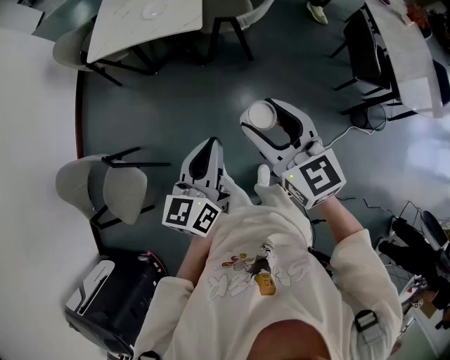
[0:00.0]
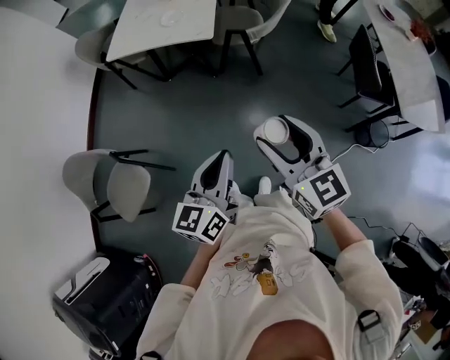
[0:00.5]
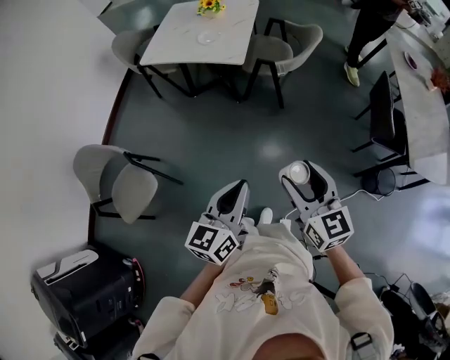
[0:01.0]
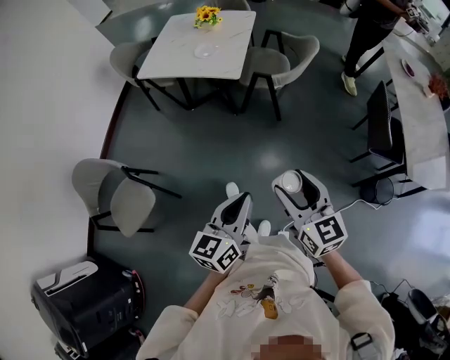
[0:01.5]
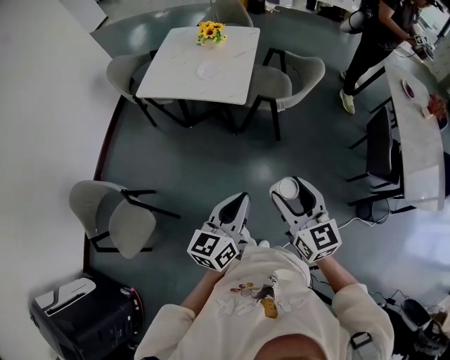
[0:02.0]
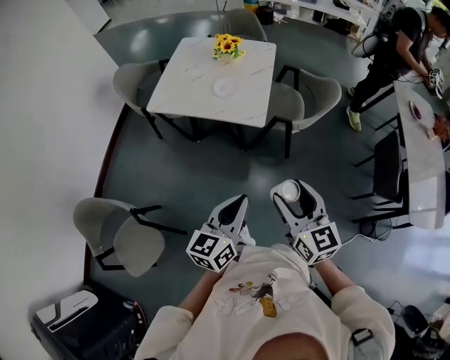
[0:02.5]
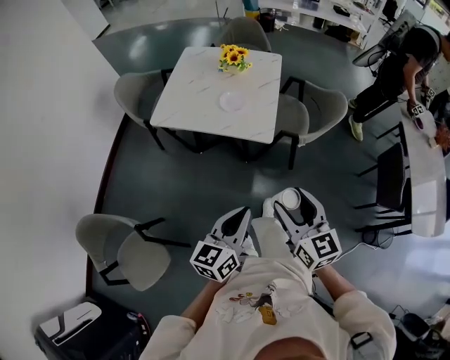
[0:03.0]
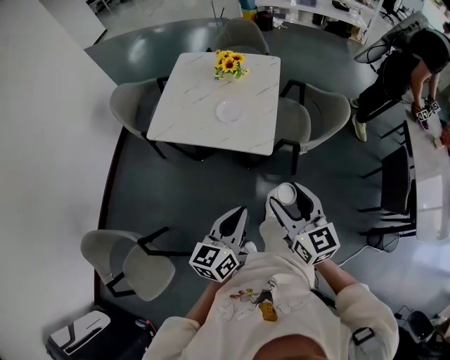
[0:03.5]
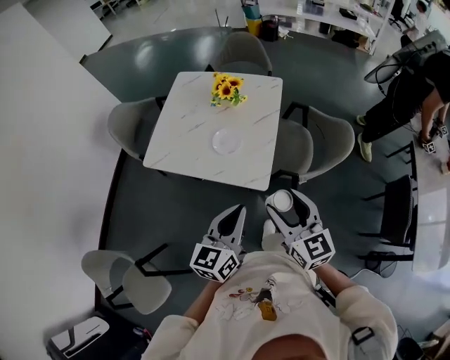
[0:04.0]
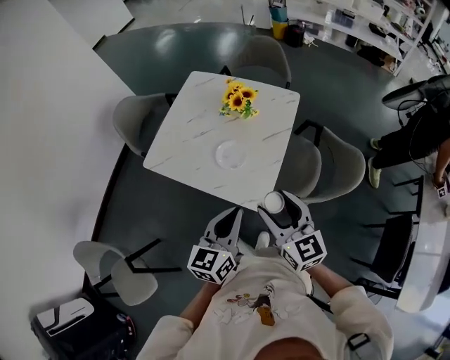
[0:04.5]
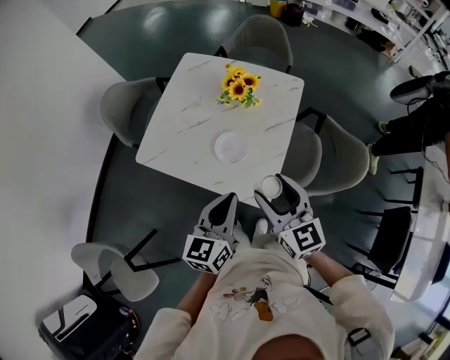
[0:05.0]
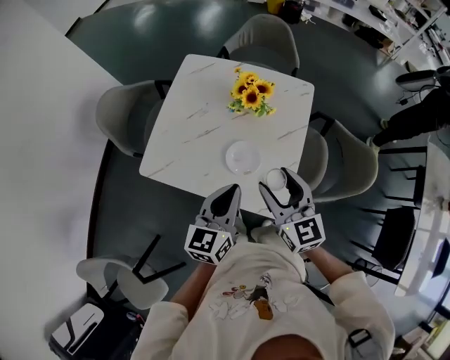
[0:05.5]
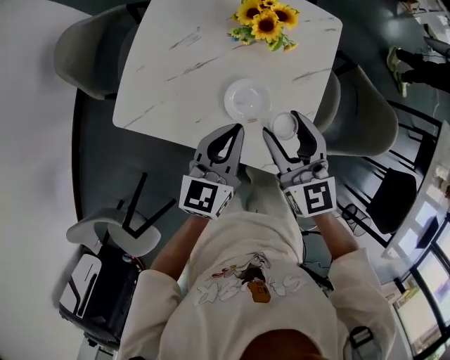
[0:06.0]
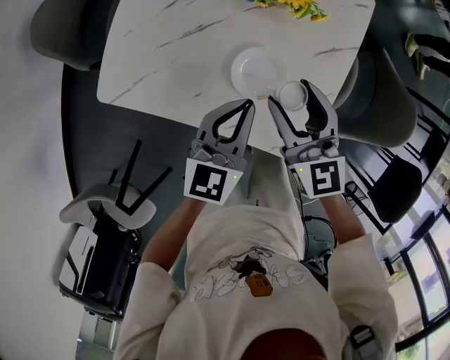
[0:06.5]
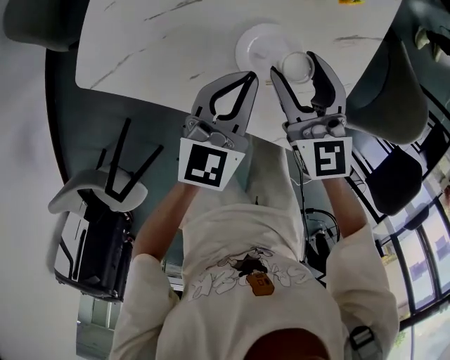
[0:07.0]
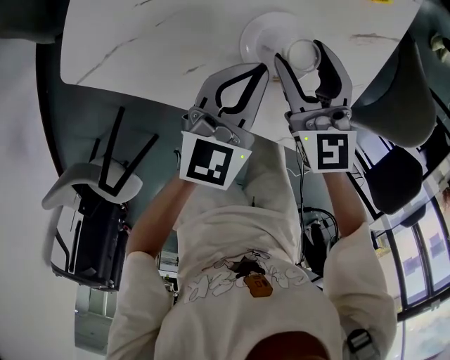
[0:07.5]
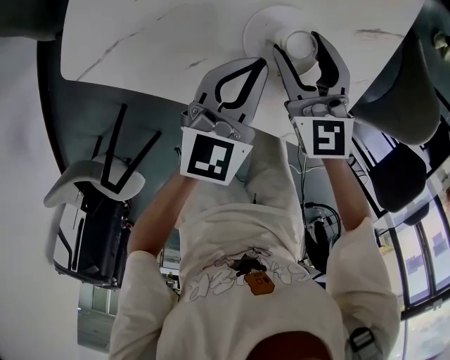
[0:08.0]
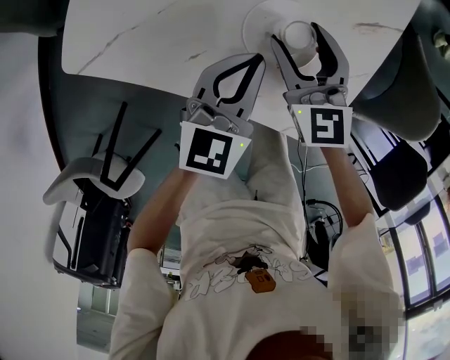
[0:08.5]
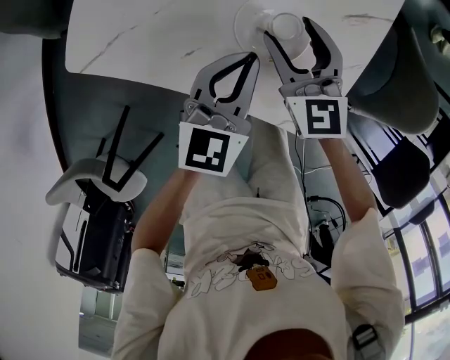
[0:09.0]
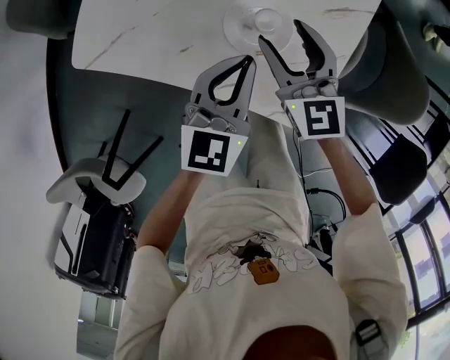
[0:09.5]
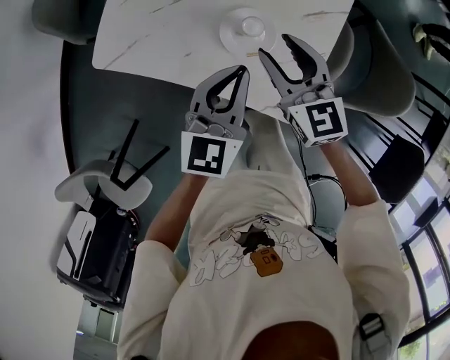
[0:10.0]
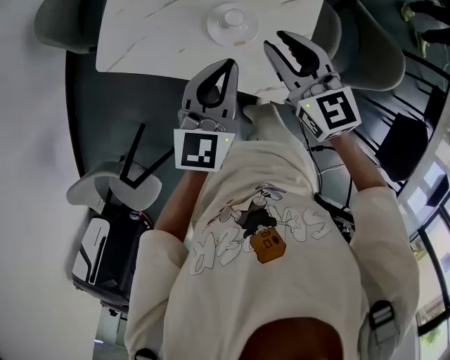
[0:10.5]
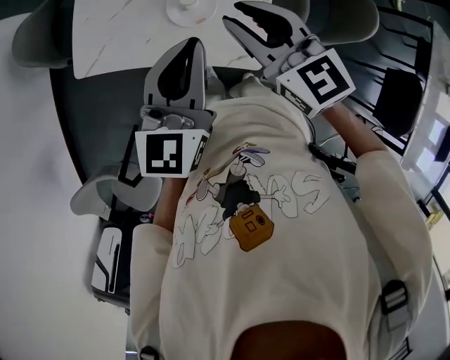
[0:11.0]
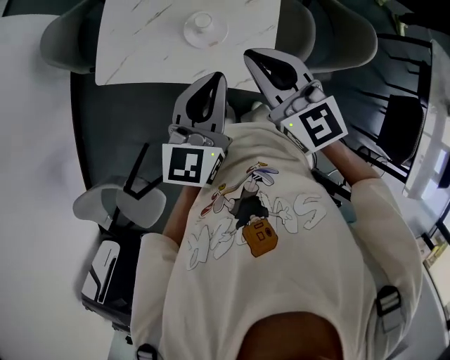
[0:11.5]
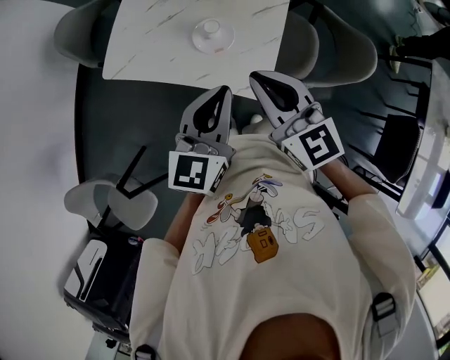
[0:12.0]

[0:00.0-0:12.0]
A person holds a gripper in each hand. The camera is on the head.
0:00.0 to 0:02.0: Both grippers move forward, roughly 5 cm.
0:02.0 to 0:04.0: The two grippers travel together, forward, approximately 40 cm.
0:04.0 to 0:06.0: The left gripper goes about 35 cm forward and downward; the right gripper is displaced forward by approximately 35 cm.
0:06.0 to 0:08.0: Both grippers move downward, some 20 cm.
0:08.0 to 0:10.0: Both grippers travel together upward, about 15 cm.
0:10.0 to 0:12.0: Both grippers travel together backward and upward, some 25 cm. The right gripper closes its fingers.

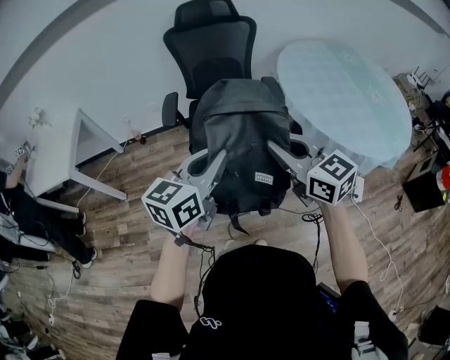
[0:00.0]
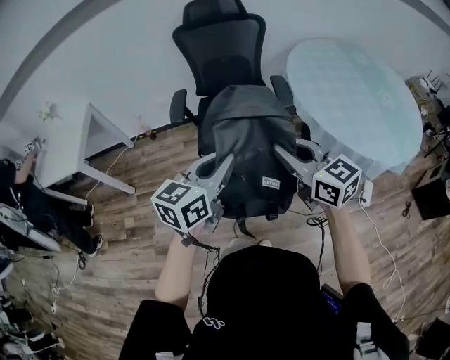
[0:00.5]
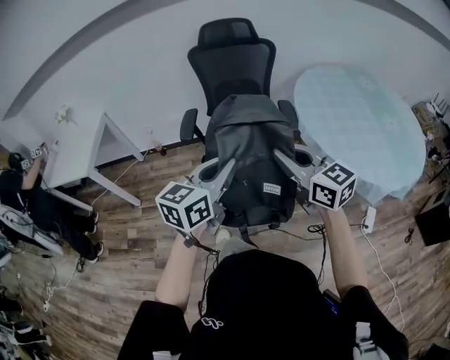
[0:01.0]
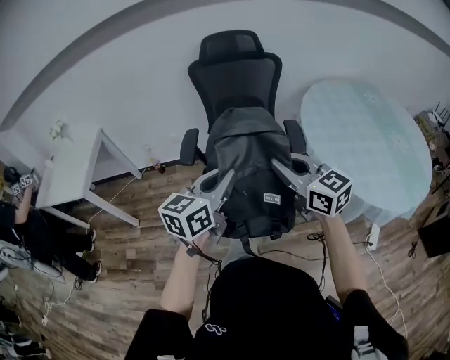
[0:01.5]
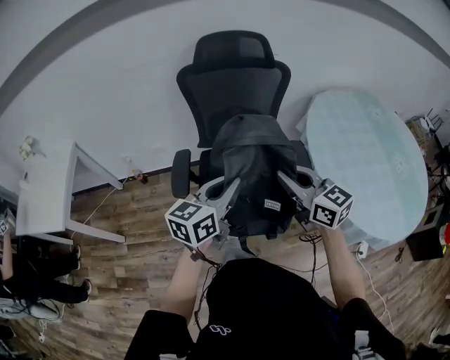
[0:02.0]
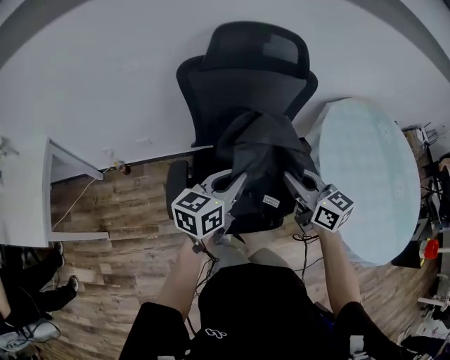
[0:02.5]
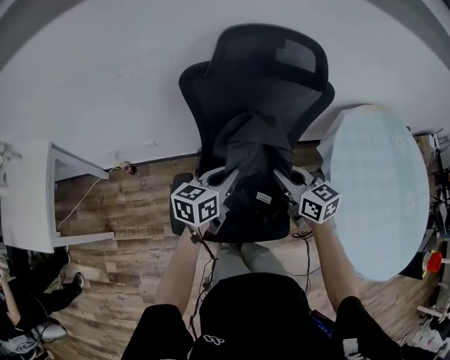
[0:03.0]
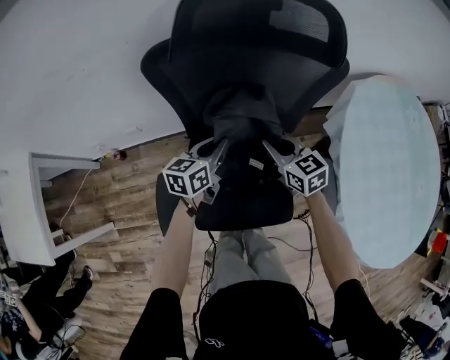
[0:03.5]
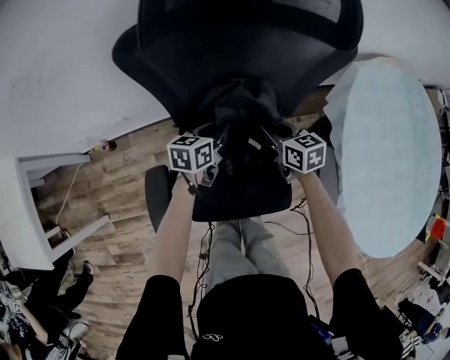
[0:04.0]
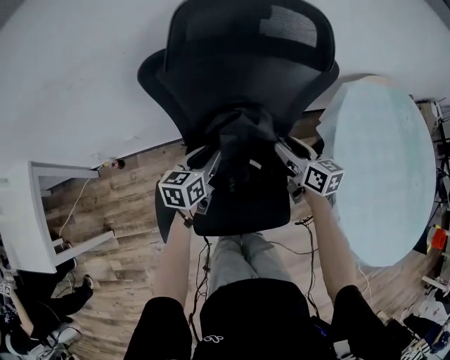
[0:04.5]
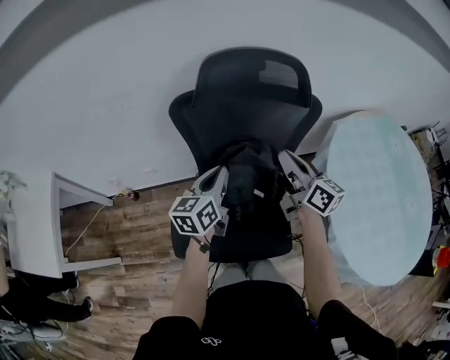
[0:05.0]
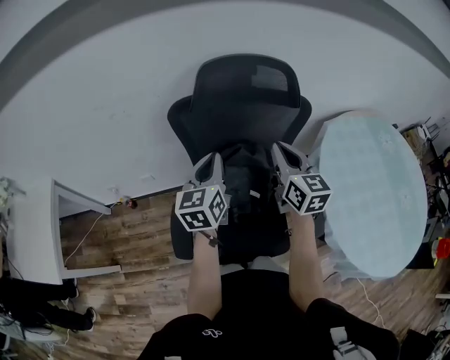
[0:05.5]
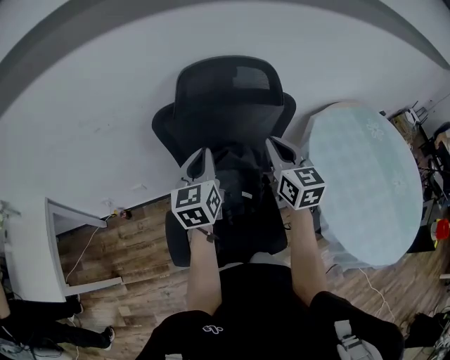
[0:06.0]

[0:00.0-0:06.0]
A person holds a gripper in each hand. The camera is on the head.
0:00.0 to 0:02.0: Both grippers move forward, some 30 cm.
0:02.0 to 0:04.0: The pair of grippers is taken forward, some 40 cm. The two grippers go approximately 30 cm downward. The right gripper rotates approximately 30 degrees; the left gripper turns by some 30 degrees.
0:04.0 to 0:06.0: The grippers both shift upward by some 35 cm. The left gripper turns by about 40 degrees, and opens, then closes once more, while the right gripper swivels some 40 degrees, and opens and closes again.

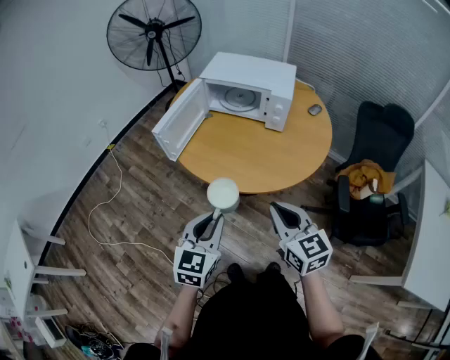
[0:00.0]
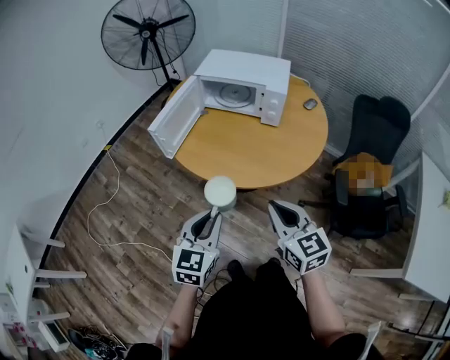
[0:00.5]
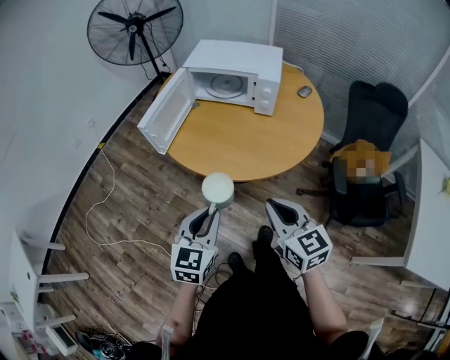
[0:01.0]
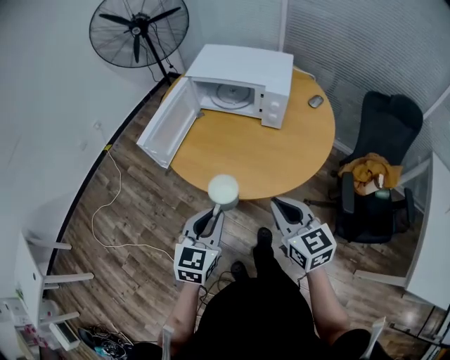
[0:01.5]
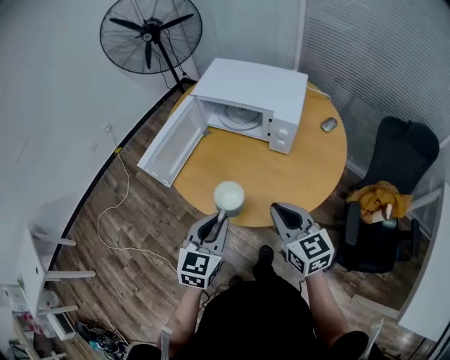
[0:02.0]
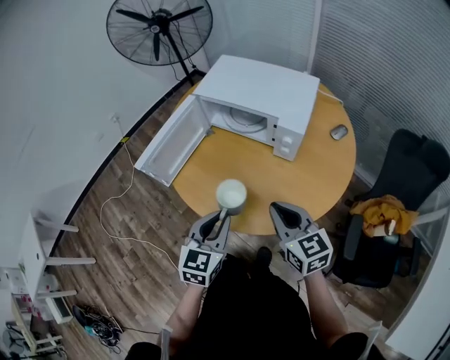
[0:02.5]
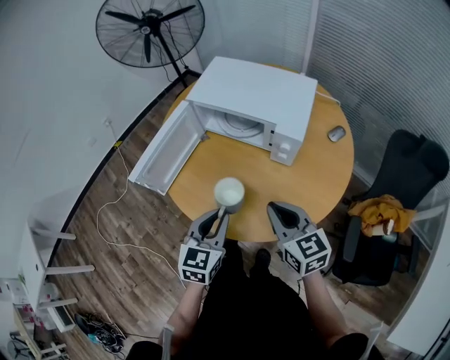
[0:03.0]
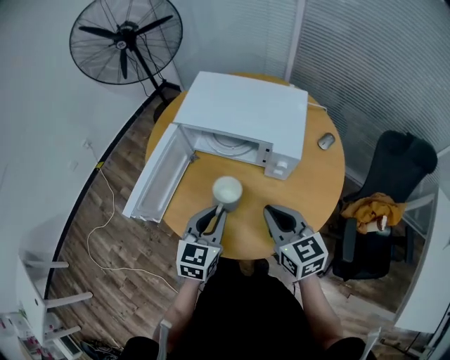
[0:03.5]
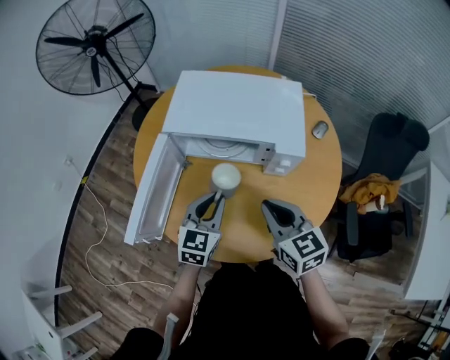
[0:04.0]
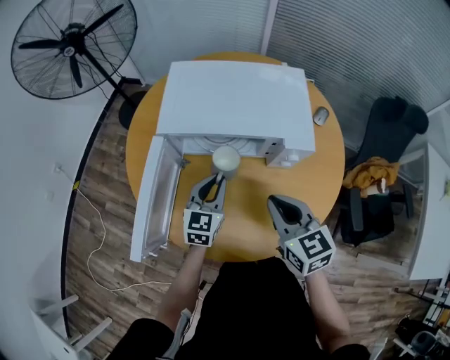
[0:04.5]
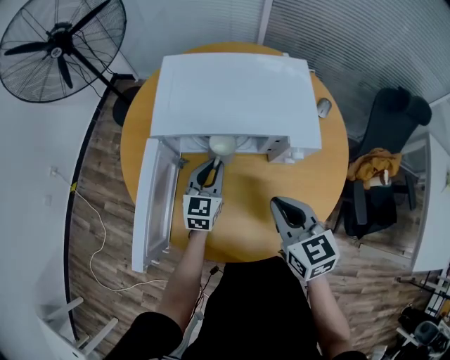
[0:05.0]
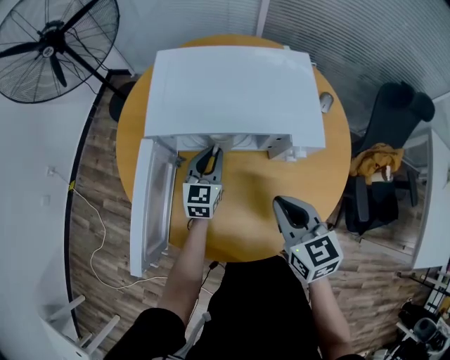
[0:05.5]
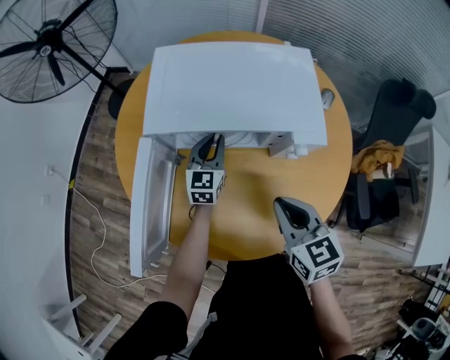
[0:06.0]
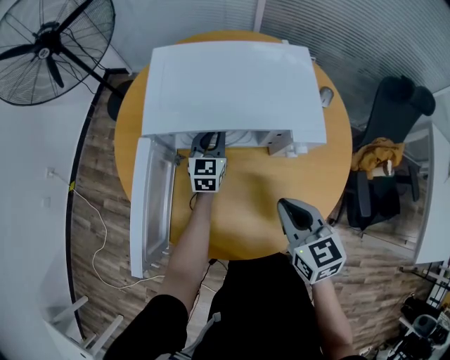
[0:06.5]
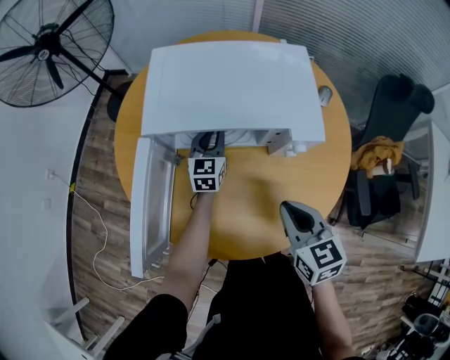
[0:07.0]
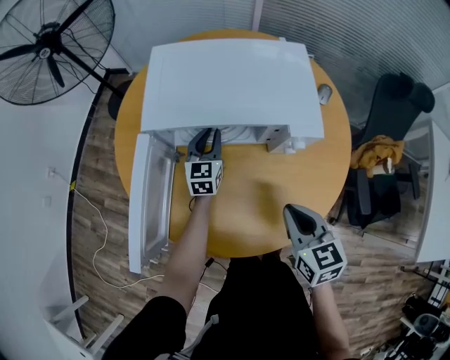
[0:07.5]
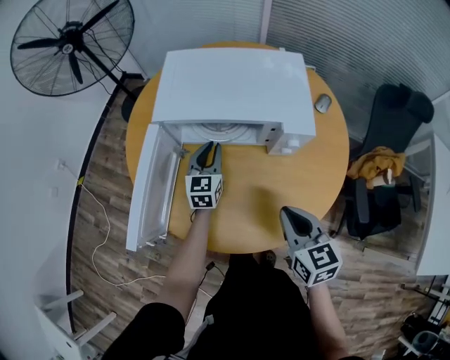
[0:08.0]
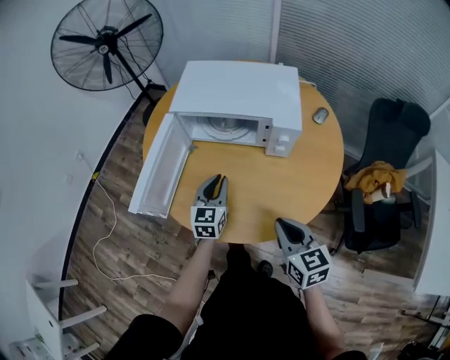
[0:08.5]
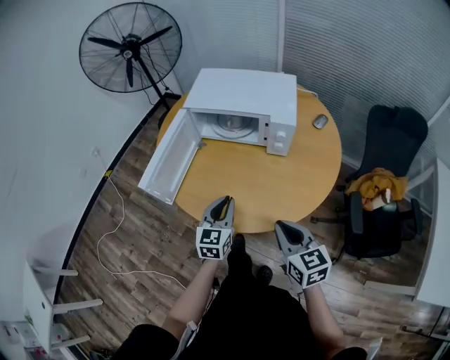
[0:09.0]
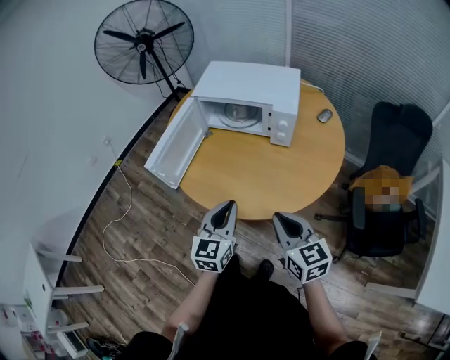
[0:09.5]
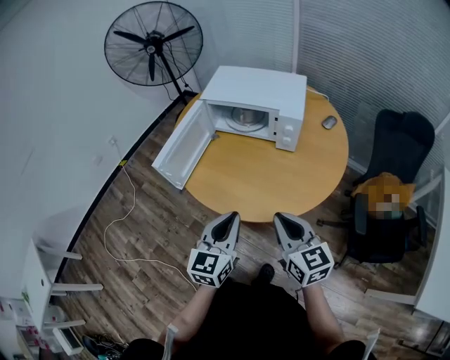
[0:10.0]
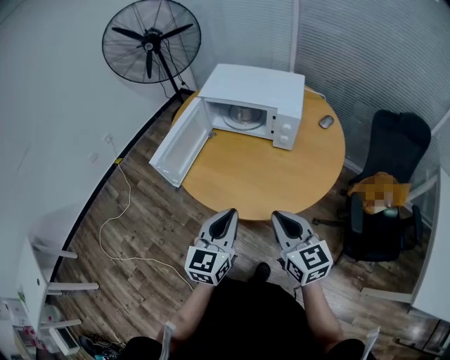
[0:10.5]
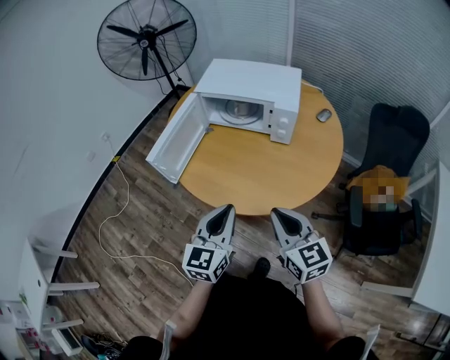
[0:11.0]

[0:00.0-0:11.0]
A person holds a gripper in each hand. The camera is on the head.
0:00.0 to 0:02.0: The right gripper goes about 15 cm forward. Meanwhile the left gripper heads forward and to the right, covering about 20 cm.
0:02.0 to 0:03.5: Both grippers move forward, approximately 15 cm.
0:03.5 to 0:05.5: The left gripper travels forward and downward by approximately 30 cm. The right gripper shifts roughly 10 cm forward and downward.
0:05.5 to 0:07.5: The right gripper changes place by approximately 5 cm, while the left gripper shifts by approximately 5 cm.
0:07.5 to 0:09.0: The right gripper moves backward, approximately 20 cm, while the left gripper travels backward by approximately 35 cm.
0:09.0 to 0:11.0: The right gripper shifts roughly 5 cm upward; the left gripper goes approximately 15 cm backward and upward.
